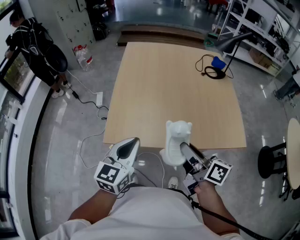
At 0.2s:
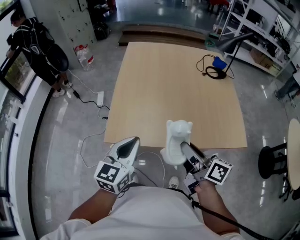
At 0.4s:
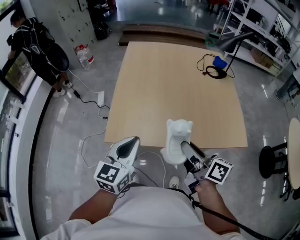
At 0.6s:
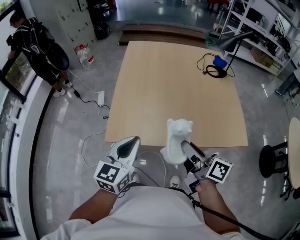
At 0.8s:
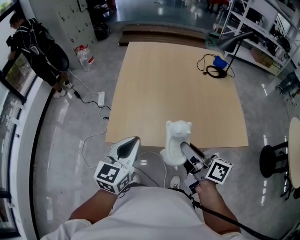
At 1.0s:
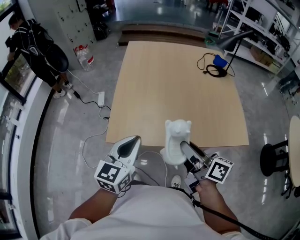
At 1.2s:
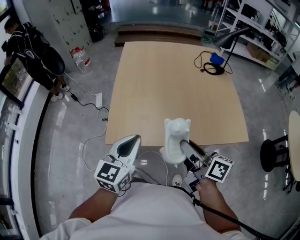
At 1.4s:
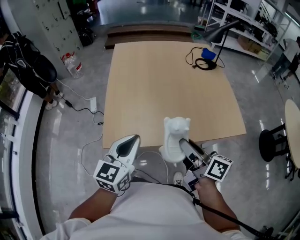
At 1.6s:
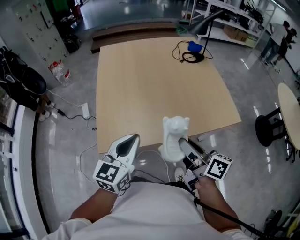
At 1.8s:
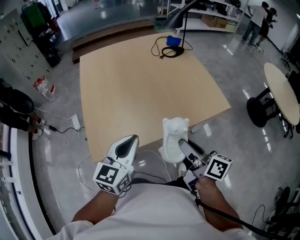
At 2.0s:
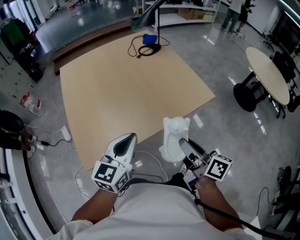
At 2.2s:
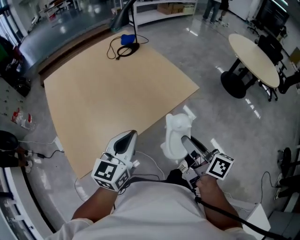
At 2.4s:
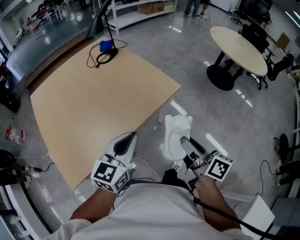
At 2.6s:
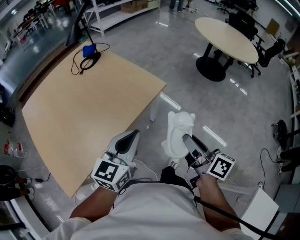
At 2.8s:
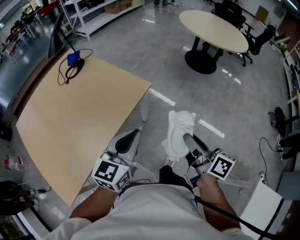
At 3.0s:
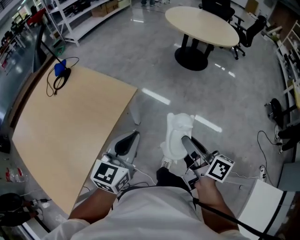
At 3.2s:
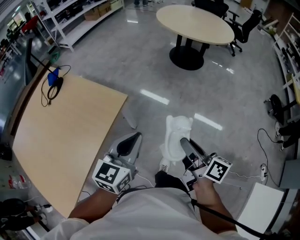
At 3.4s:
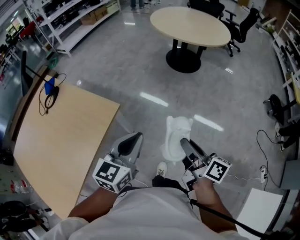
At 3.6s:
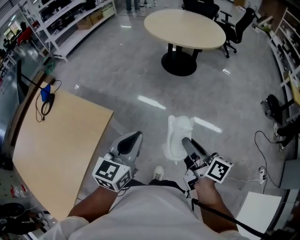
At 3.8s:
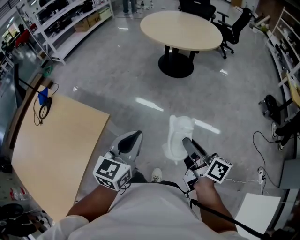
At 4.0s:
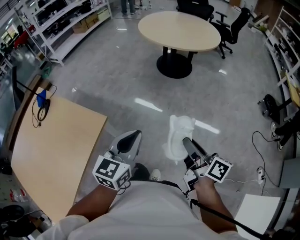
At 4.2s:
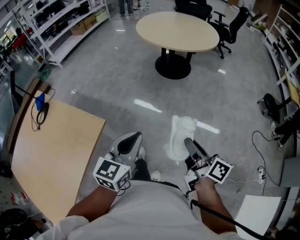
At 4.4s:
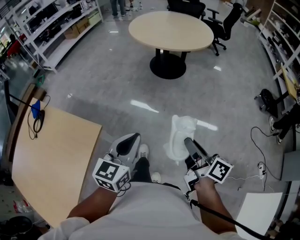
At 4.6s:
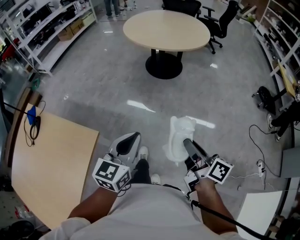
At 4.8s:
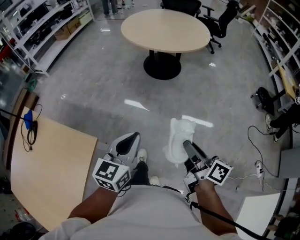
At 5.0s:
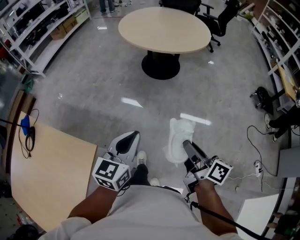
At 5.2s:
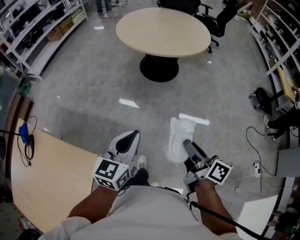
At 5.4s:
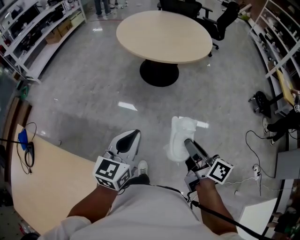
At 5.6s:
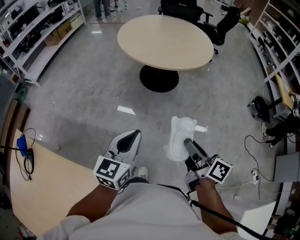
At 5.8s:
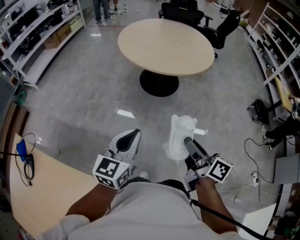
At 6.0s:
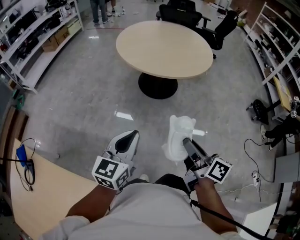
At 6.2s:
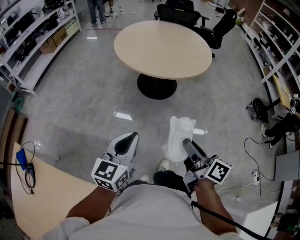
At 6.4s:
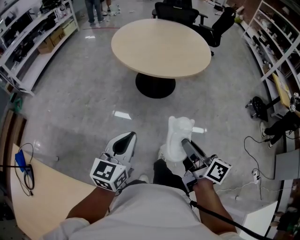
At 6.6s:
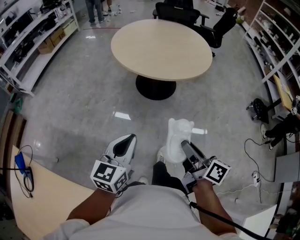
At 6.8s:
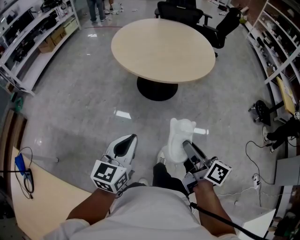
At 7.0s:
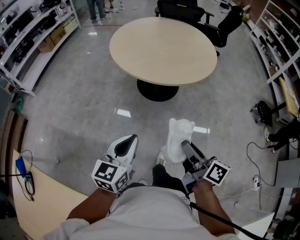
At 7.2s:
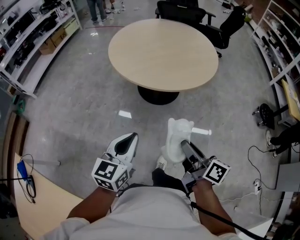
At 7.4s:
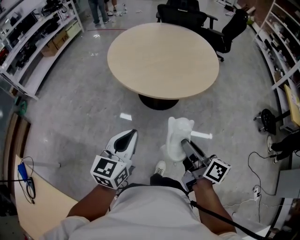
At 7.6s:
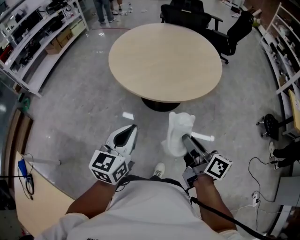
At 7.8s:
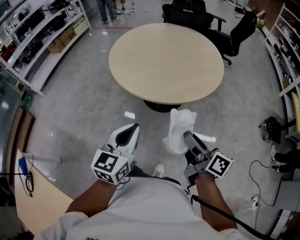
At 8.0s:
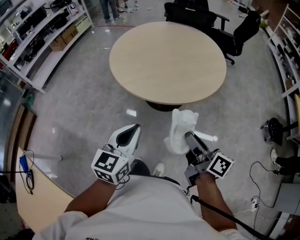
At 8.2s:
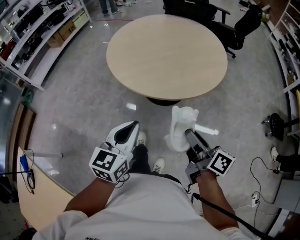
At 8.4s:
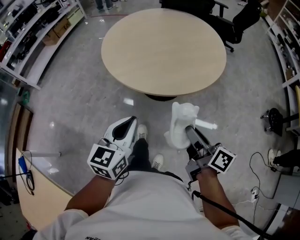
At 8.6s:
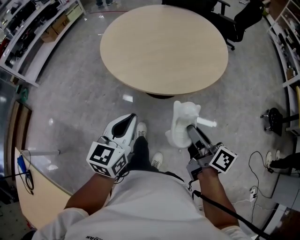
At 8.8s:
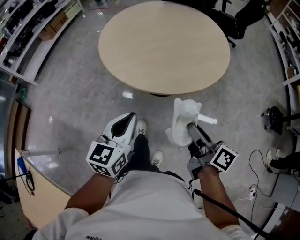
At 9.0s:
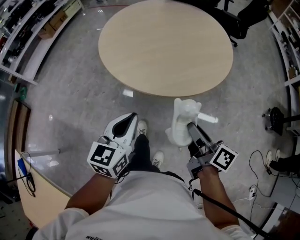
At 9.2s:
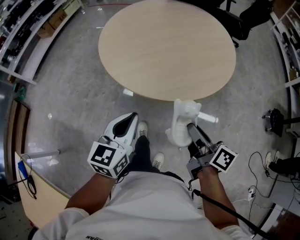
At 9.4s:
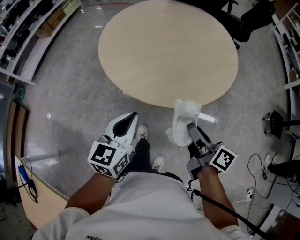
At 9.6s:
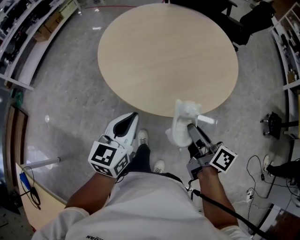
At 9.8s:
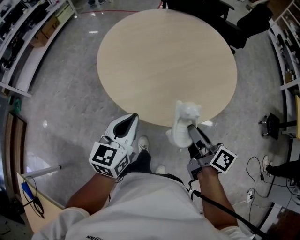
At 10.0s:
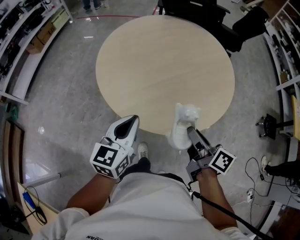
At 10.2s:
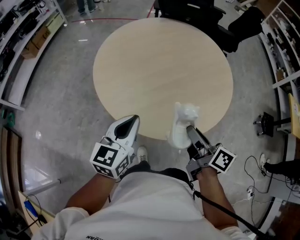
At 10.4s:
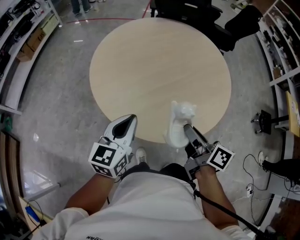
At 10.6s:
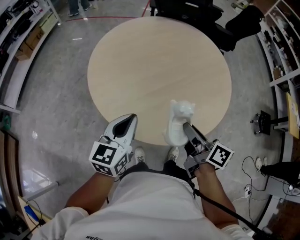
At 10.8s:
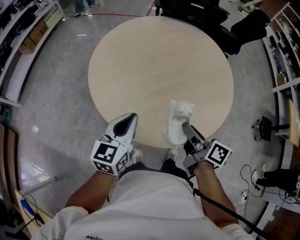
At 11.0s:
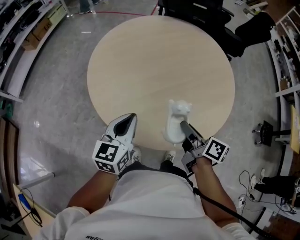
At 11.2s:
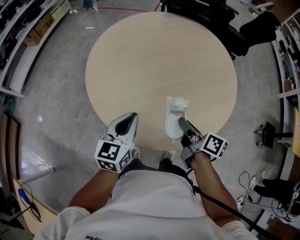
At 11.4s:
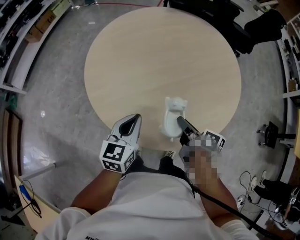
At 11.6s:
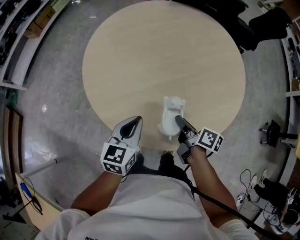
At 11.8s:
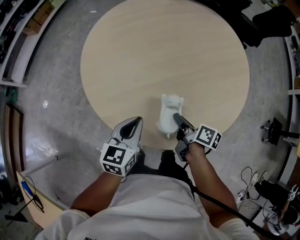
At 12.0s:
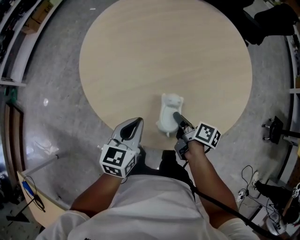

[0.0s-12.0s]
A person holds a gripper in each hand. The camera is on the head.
0.0s to 1.6s: There are only small adjustments of the grippers.
1.6s to 3.0s: The right gripper ends up approximately 40 cm from where it was, and rotates approximately 60 degrees; the left gripper ends up roughly 40 cm from where it was, and swivels about 50 degrees.
3.0s to 4.4s: The right gripper shifts about 20 cm to the right and forward; the left gripper shifts roughly 20 cm forward and to the right.
4.4s to 6.0s: Both grippers travel together forward, approximately 25 cm.
6.0s to 7.6s: The left gripper heads forward, covering about 20 cm. The right gripper travels forward and to the right by about 20 cm.
7.6s to 9.0s: The grippers both shift forward by about 5 cm.
9.0s to 10.4s: The grippers both shift forward by some 20 cm.
10.4s to 12.0s: The right gripper shifts approximately 20 cm downward and forward, and rotates approximately 30 degrees. Meanwhile the left gripper goes about 15 cm downward and to the right.

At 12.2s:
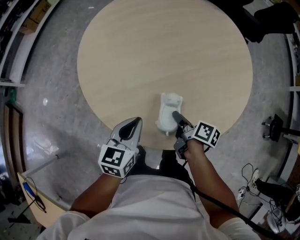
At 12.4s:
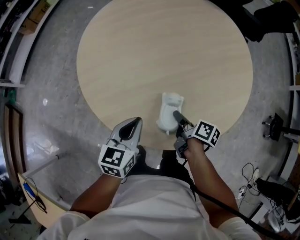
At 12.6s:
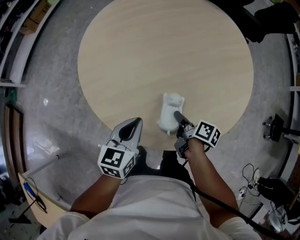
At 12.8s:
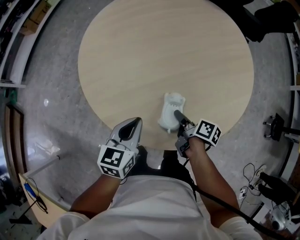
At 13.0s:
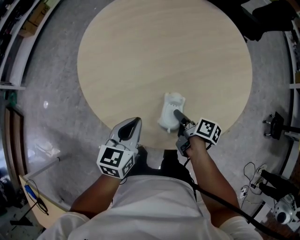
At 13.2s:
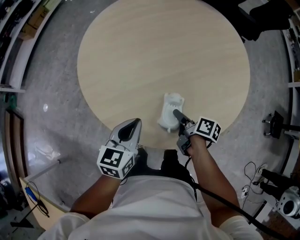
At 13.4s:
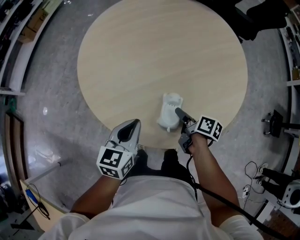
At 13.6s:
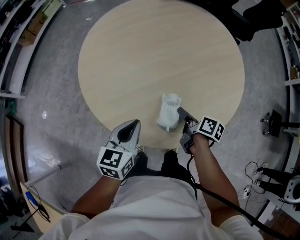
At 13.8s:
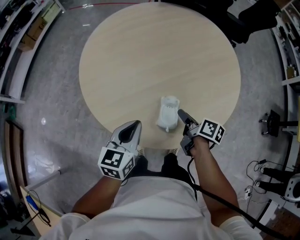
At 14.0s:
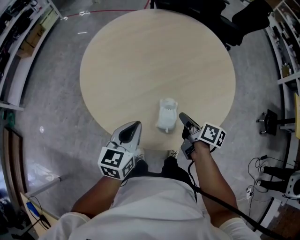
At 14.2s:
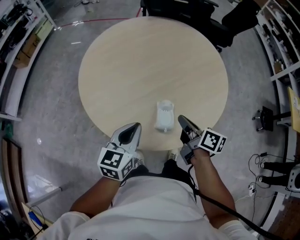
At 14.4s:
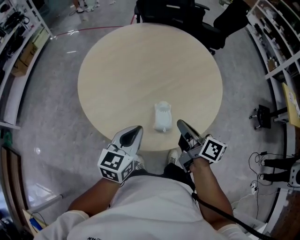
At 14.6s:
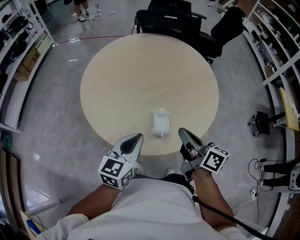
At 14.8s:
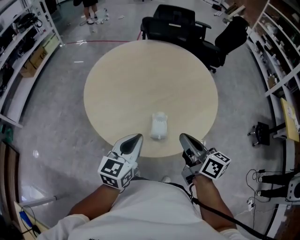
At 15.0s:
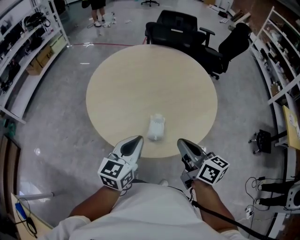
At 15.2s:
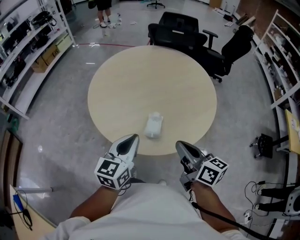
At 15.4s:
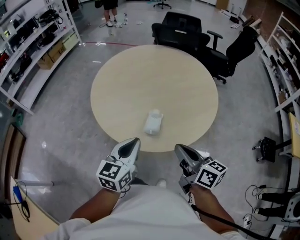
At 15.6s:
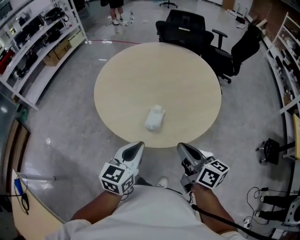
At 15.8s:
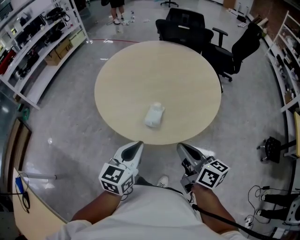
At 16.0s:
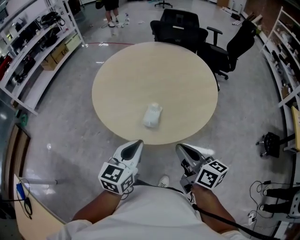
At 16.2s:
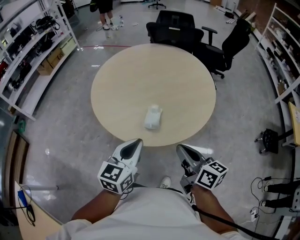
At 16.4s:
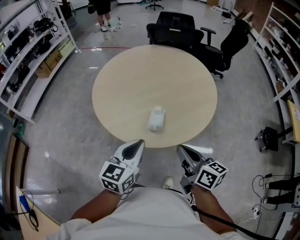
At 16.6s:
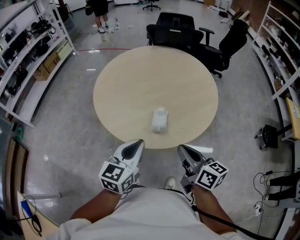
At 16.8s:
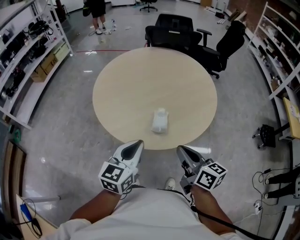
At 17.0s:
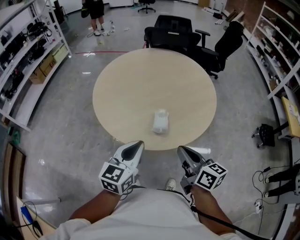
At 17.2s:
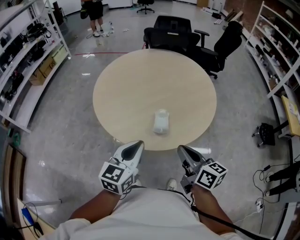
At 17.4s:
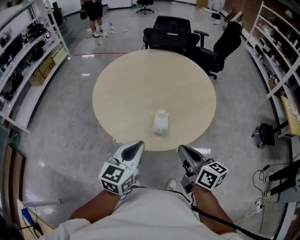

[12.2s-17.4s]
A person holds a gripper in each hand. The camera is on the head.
12.2s to 14.0s: The right gripper heads upward, covering roughly 5 cm, and opens, then closes again.
14.0s to 15.6s: The left gripper heads backward, to the right and upward, covering approximately 15 cm; the right gripper heads upward and backward, covering approximately 20 cm, swivels approximately 30 degrees, and closes its fingers.
15.6s to 17.4s: The two grippers go some 5 cm to the left.

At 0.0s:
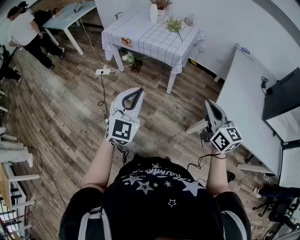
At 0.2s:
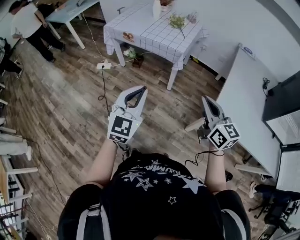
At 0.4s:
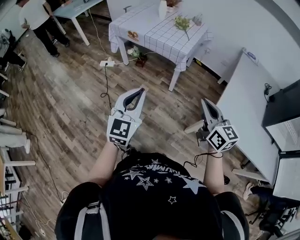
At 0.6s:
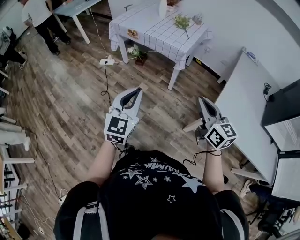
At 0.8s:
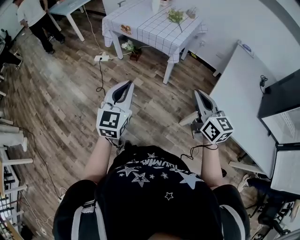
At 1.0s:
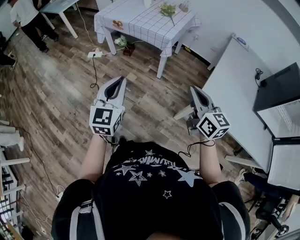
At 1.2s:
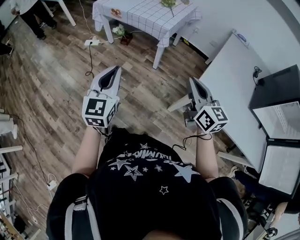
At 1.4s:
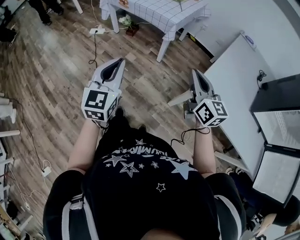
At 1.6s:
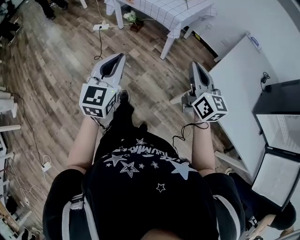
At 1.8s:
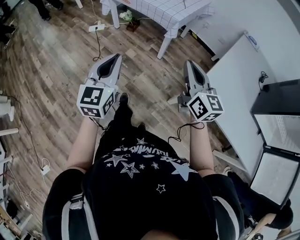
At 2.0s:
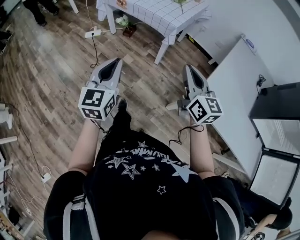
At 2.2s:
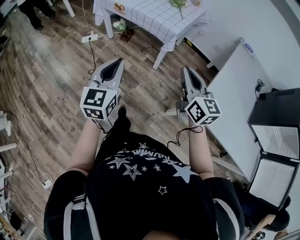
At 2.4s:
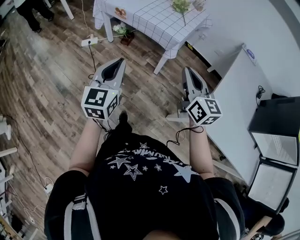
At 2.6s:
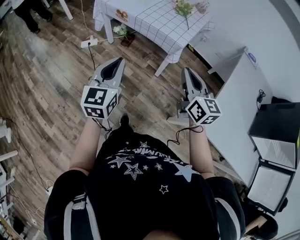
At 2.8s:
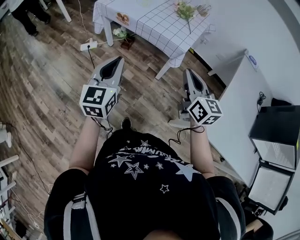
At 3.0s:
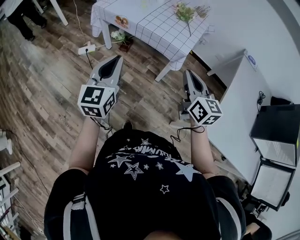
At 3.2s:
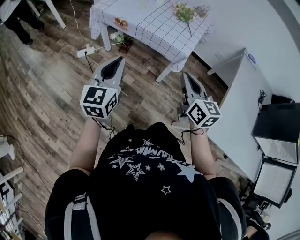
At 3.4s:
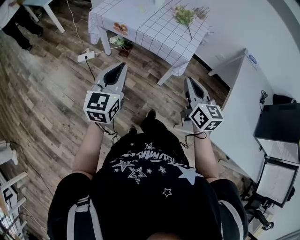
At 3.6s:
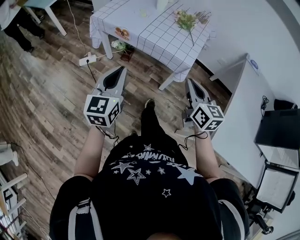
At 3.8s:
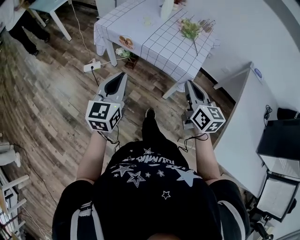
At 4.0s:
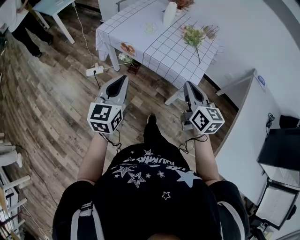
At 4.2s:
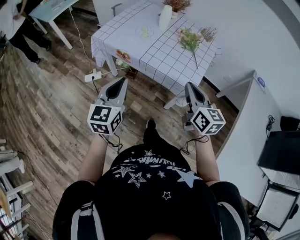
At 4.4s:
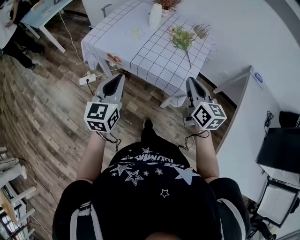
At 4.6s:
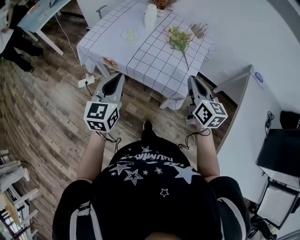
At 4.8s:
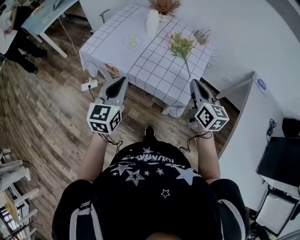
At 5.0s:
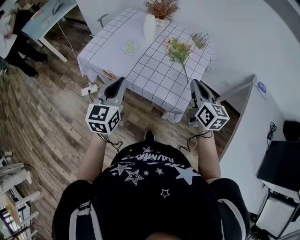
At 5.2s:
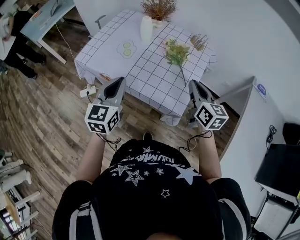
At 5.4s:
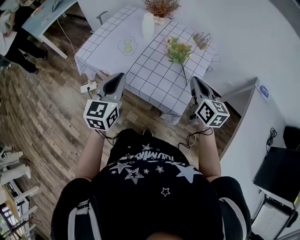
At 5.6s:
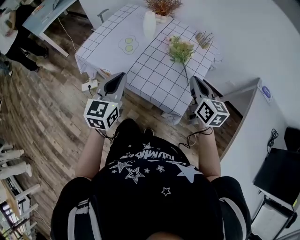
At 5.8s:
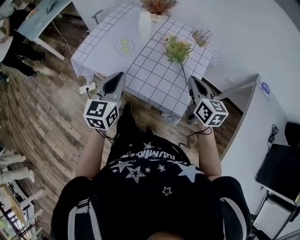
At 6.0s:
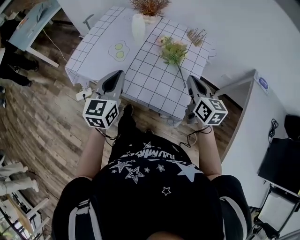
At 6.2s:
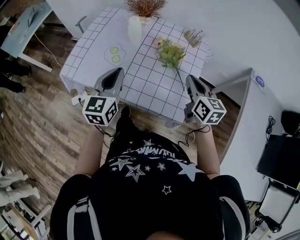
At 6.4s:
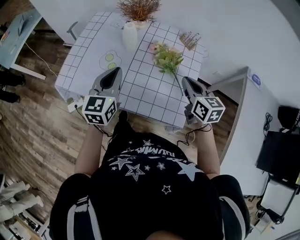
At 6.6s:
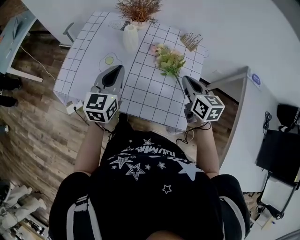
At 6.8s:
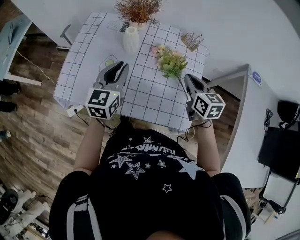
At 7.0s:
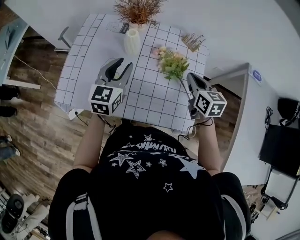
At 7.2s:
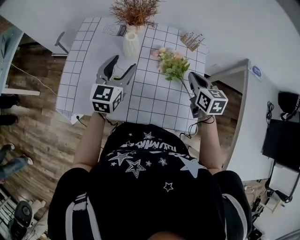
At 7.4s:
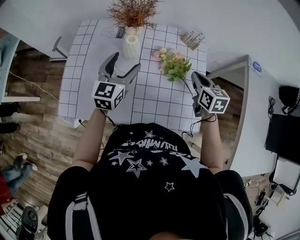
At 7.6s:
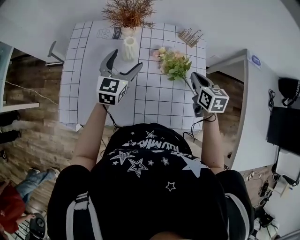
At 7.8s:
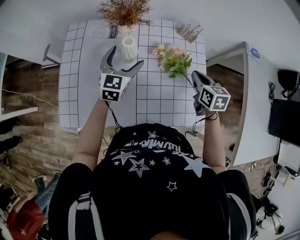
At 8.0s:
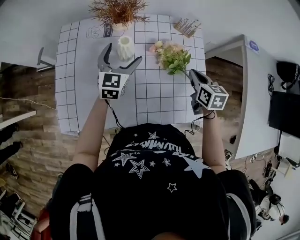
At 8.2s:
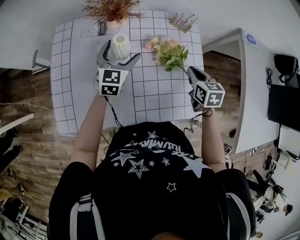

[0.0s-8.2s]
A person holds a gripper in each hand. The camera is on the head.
0.0s to 1.6s: The left gripper travels backward by about 5 cm, and swivels roughly 30 degrees.
1.6s to 3.2s: The left gripper goes approximately 30 cm forward; the right gripper shifts approximately 30 cm forward and to the left.
3.2s to 5.0s: Both grippers move forward, some 30 cm.
5.0s to 6.6s: The right gripper goes approximately 15 cm forward, while the left gripper shifts some 25 cm forward.
6.6s to 8.2s: The right gripper goes about 10 cm downward, and changes its angle by some 30 degrees. Meanwhile the left gripper is displaced forward and downward by some 20 cm, rotates roughly 20 degrees, and opens.
